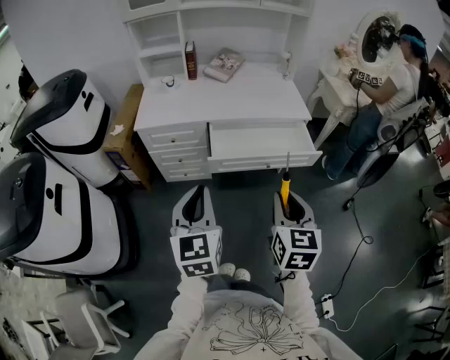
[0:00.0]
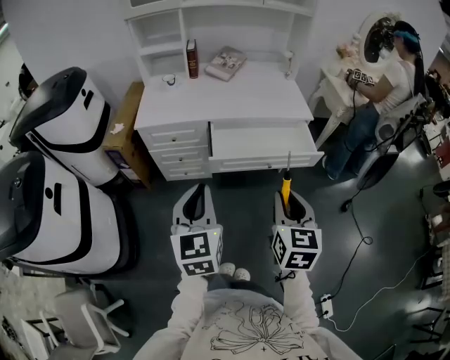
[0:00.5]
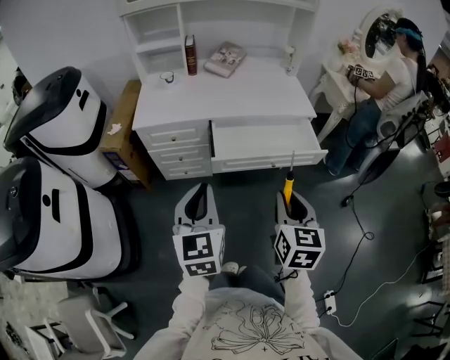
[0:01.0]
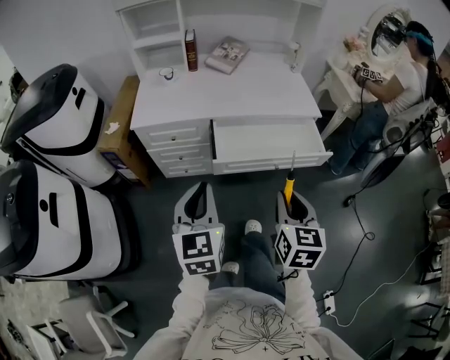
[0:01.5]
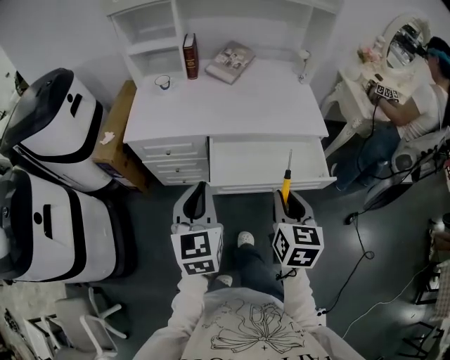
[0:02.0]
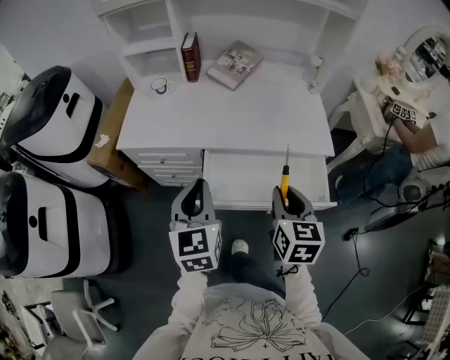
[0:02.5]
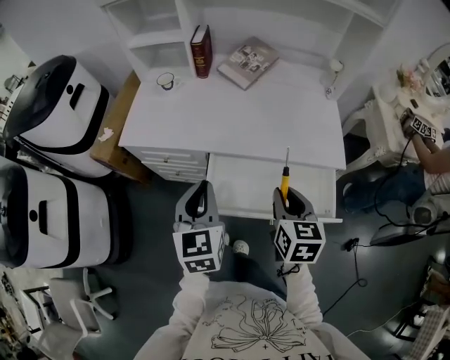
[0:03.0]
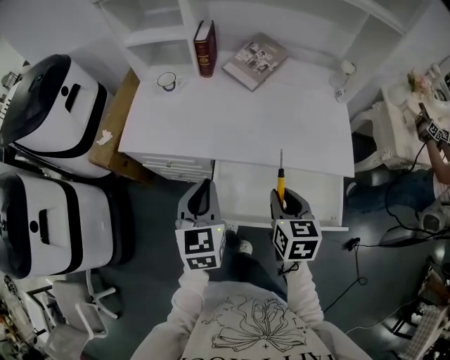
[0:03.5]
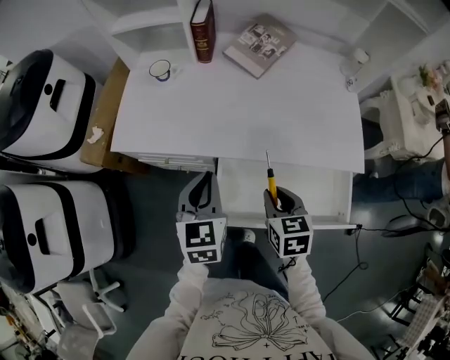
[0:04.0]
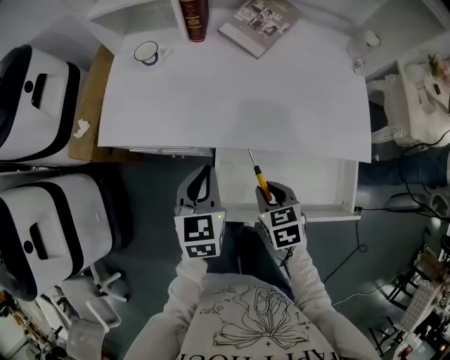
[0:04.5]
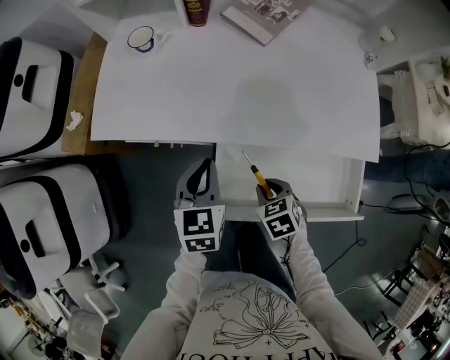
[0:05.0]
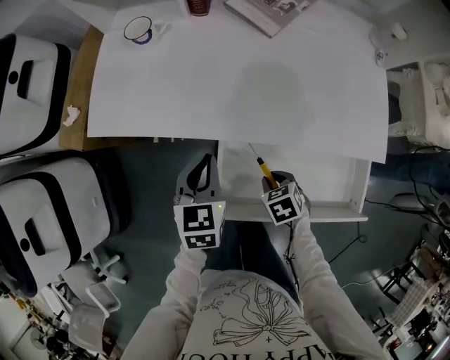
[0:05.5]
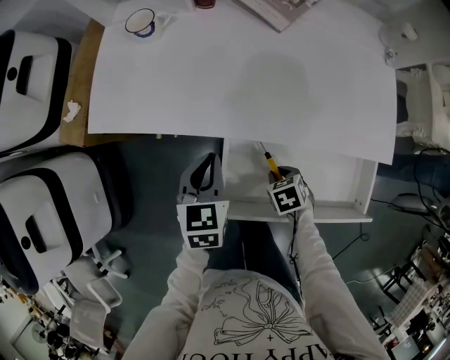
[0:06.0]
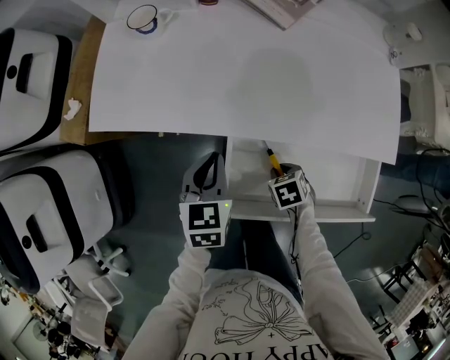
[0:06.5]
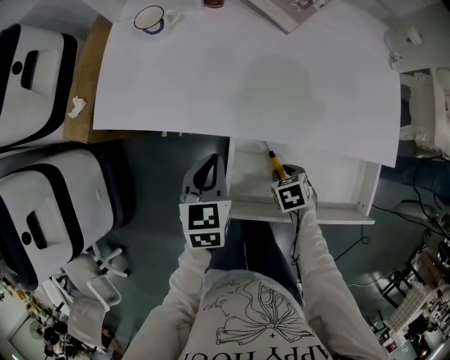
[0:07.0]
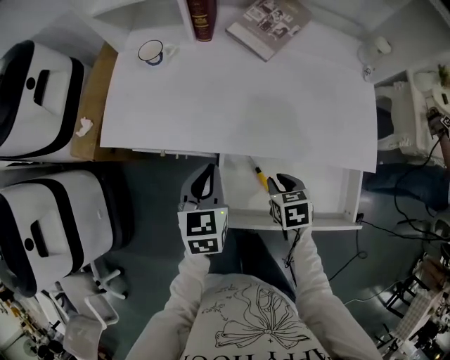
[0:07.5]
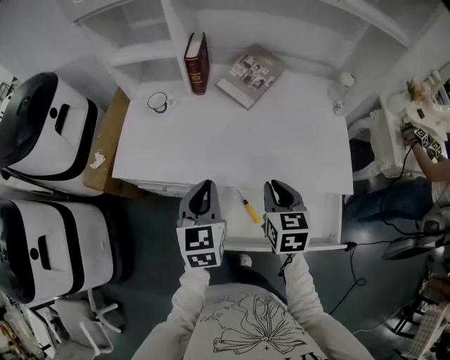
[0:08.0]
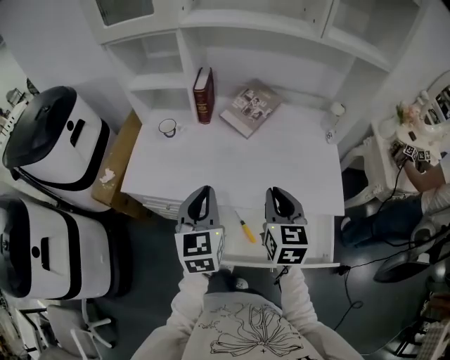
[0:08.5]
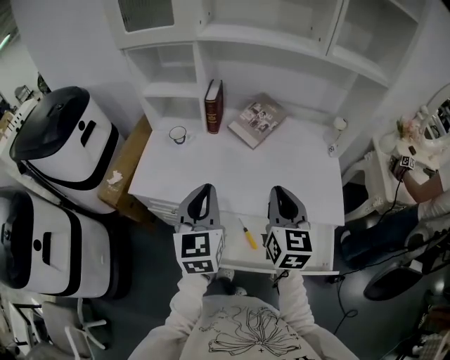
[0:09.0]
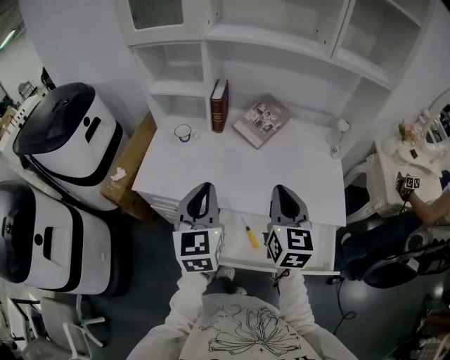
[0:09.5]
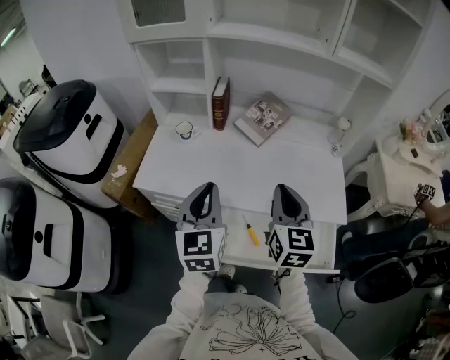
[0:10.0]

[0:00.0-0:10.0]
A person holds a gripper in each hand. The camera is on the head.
0:00.0 to 0:02.0: Both grippers travel together forward, about 20 cm.
0:02.0 to 0:04.0: Both grippers move forward and downward, some 30 cm. The right gripper turns by some 30 degrees.
0:04.0 to 0:06.0: The left gripper travels downward by some 15 cm. Meanwhile the right gripper is displaced downward by approximately 25 cm, and tilts its fingers roughly 30 degrees downward.
0:06.0 to 0:08.0: The left gripper goes approximately 15 cm upward. The right gripper heads upward, covering about 30 cm, and points its fingers some 40 degrees further upward.
0:08.0 to 0:10.0: The grippers both shift upward by some 15 cm. The right gripper swivels approximately 20 degrees.

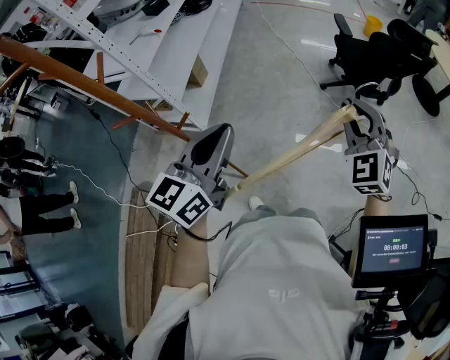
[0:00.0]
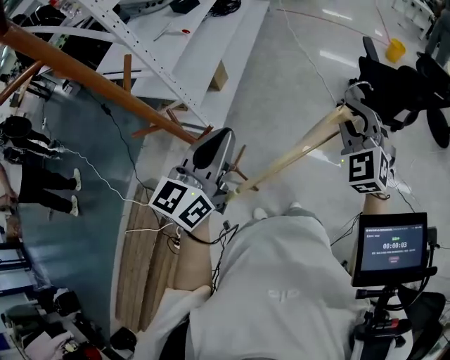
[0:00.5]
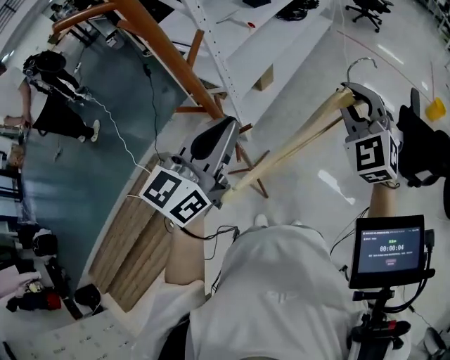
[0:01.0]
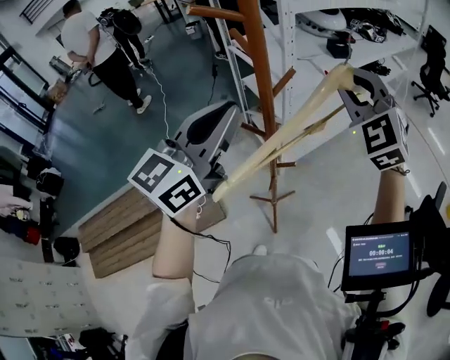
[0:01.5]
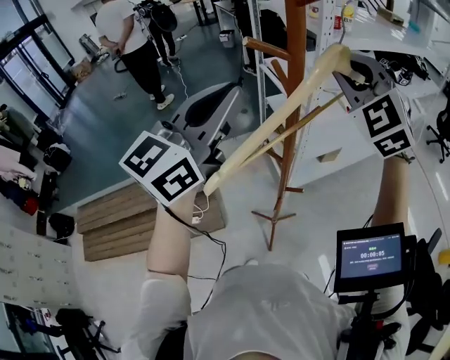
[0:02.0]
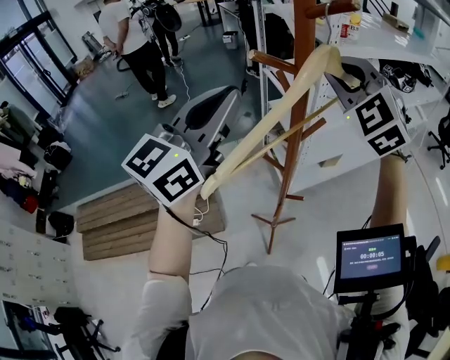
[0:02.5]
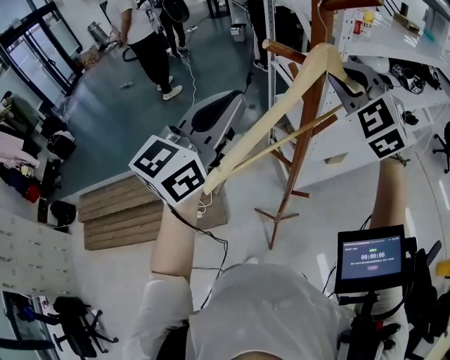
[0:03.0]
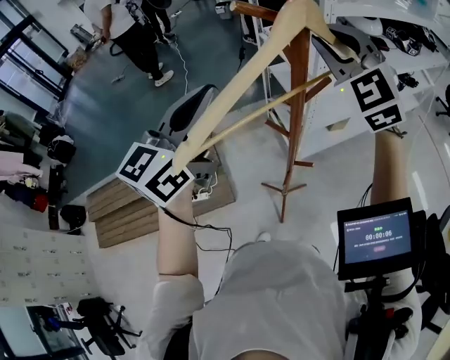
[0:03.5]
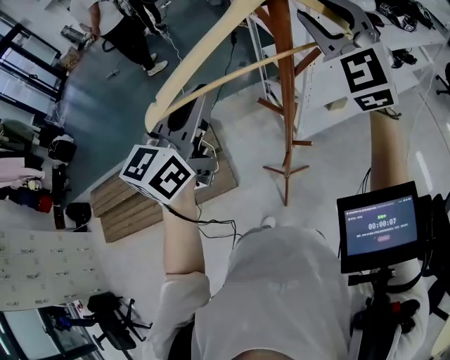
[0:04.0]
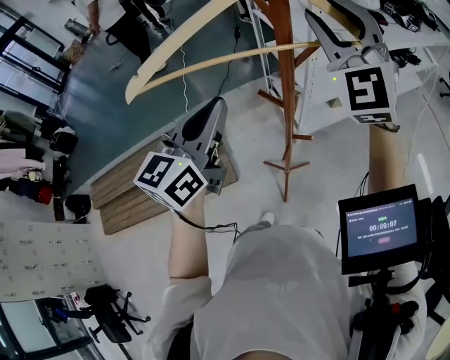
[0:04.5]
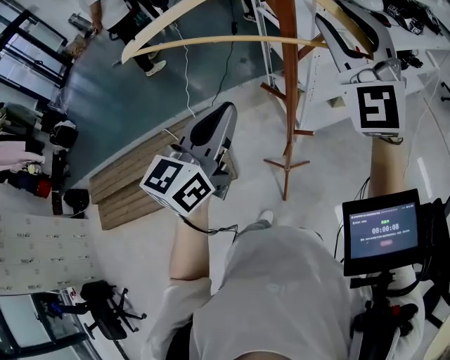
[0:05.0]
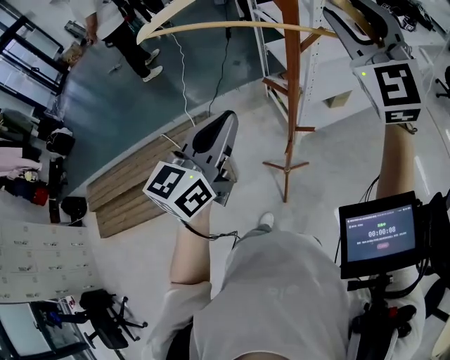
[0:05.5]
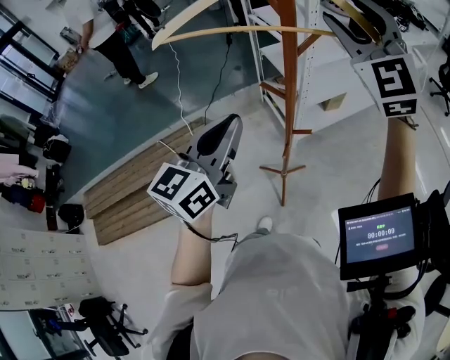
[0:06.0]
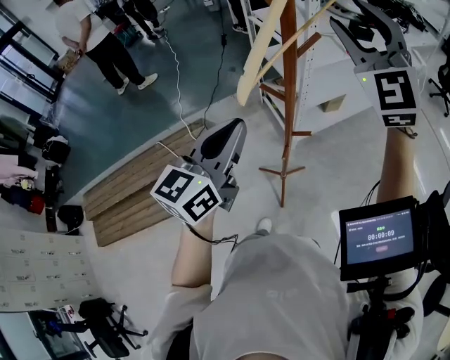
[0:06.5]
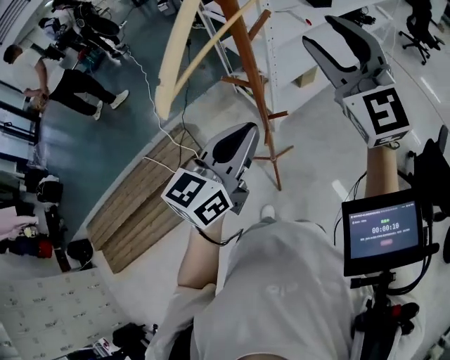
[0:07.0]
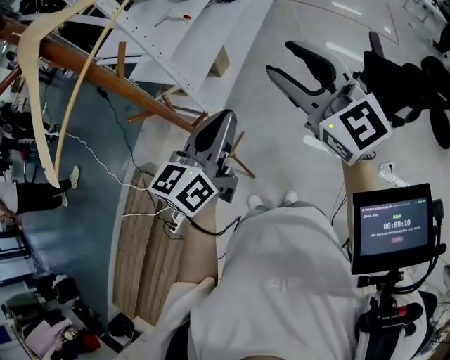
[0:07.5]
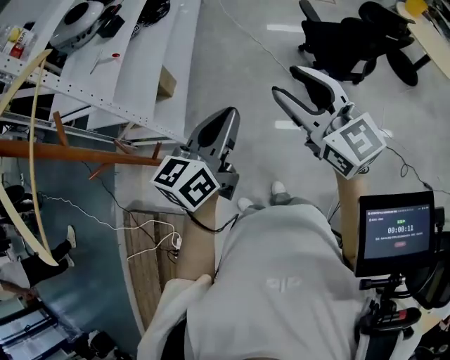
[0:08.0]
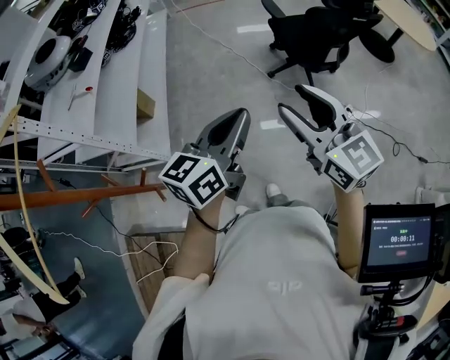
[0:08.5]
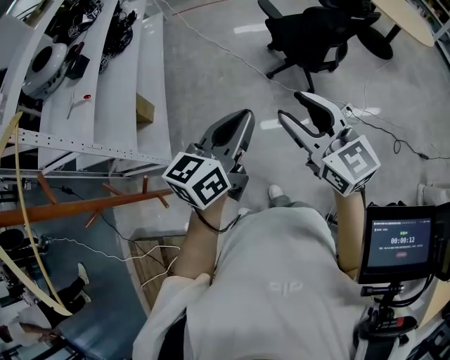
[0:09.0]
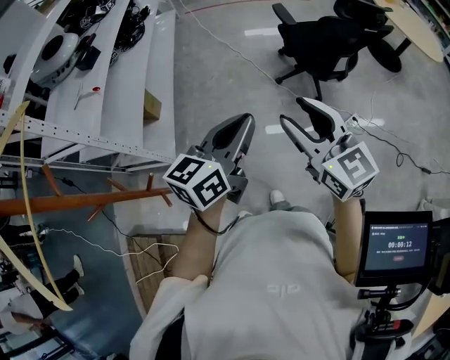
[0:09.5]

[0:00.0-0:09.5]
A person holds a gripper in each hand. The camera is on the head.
0:00.0 to 0:02.0: The left gripper shifts roughly 30 cm upward, and swivels some 50 degrees, while the right gripper shifts by about 60 cm, and turns by about 70 degrees.
0:02.0 to 0:04.0: The left gripper moves downward, approximately 10 cm.
0:04.0 to 0:05.5: The left gripper moves backward and downward, about 10 cm; the right gripper moves backward, approximately 10 cm.
0:05.5 to 0:07.5: The left gripper moves approximately 25 cm, and changes its angle by approximately 40 degrees. The right gripper shifts by some 30 cm, and swivels about 40 degrees.
0:07.5 to 0:09.5: The left gripper shifts by roughly 25 cm, and changes its angle by approximately 40 degrees. The right gripper changes place by about 25 cm, and changes its angle by approximately 40 degrees.

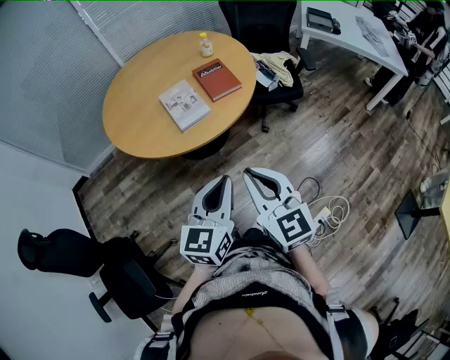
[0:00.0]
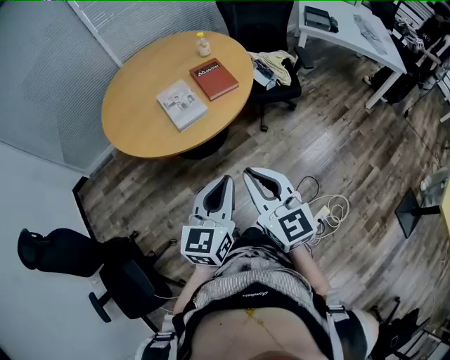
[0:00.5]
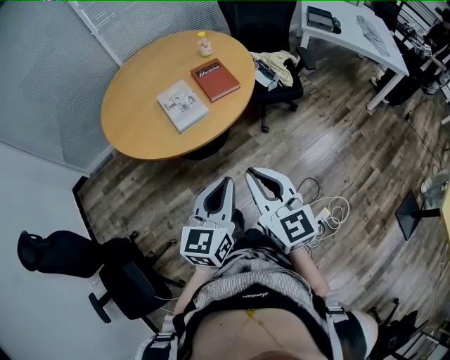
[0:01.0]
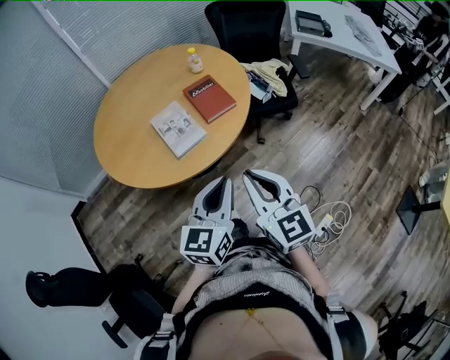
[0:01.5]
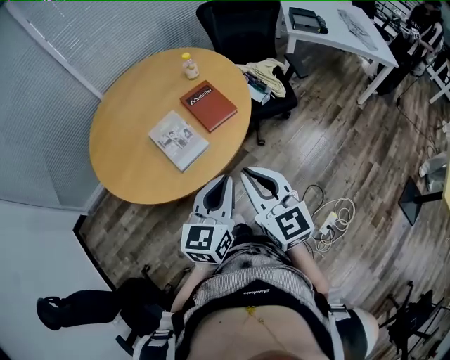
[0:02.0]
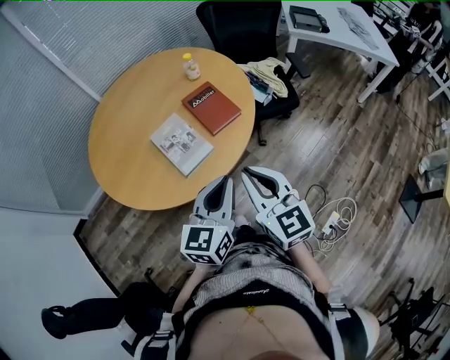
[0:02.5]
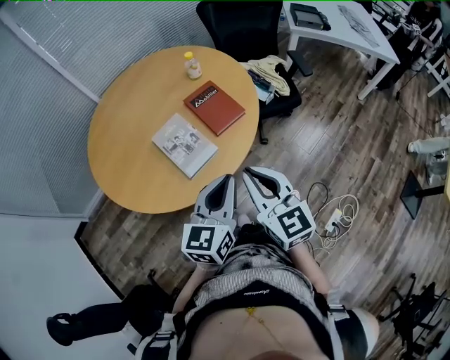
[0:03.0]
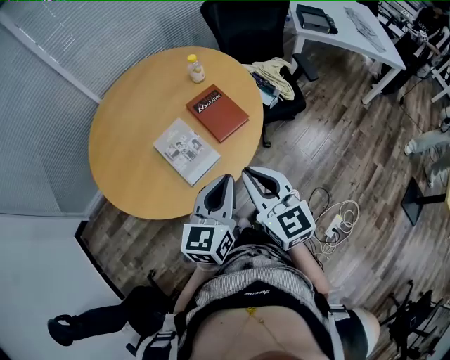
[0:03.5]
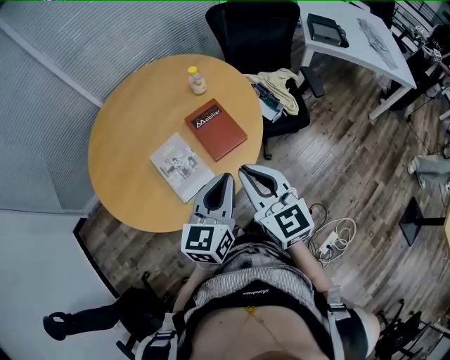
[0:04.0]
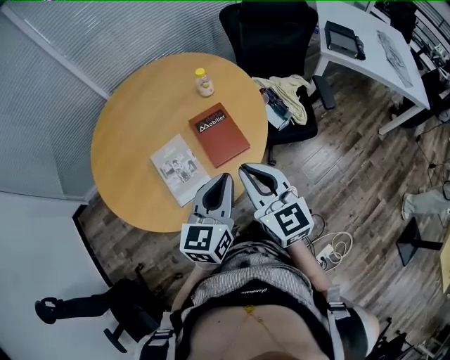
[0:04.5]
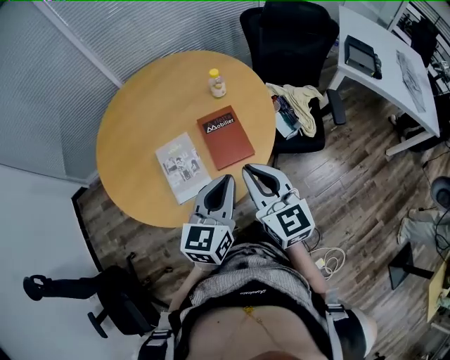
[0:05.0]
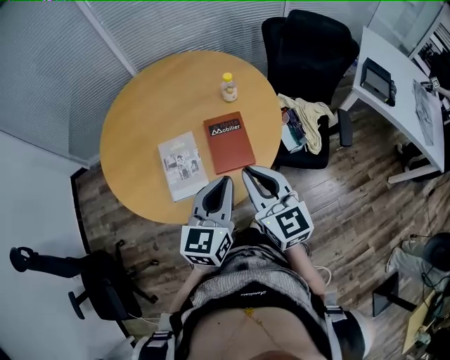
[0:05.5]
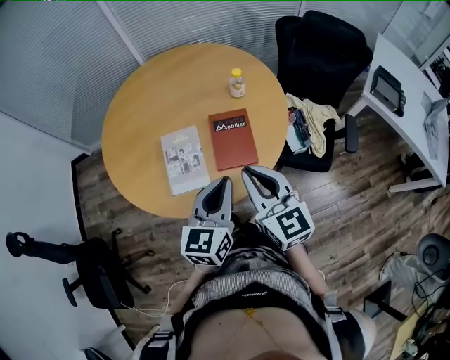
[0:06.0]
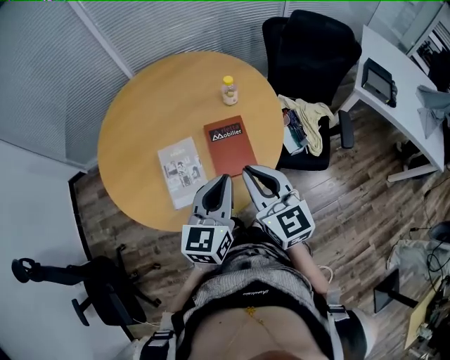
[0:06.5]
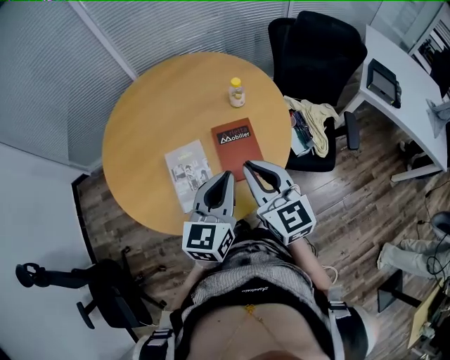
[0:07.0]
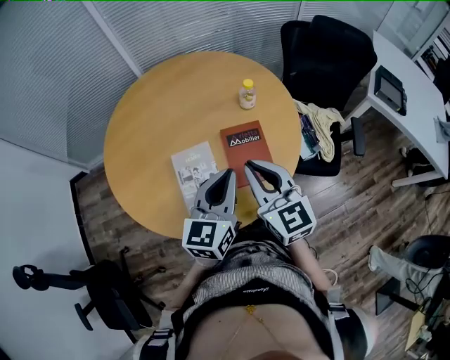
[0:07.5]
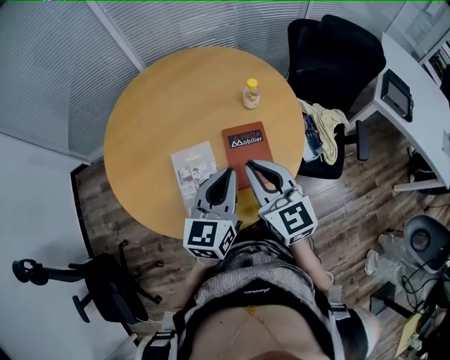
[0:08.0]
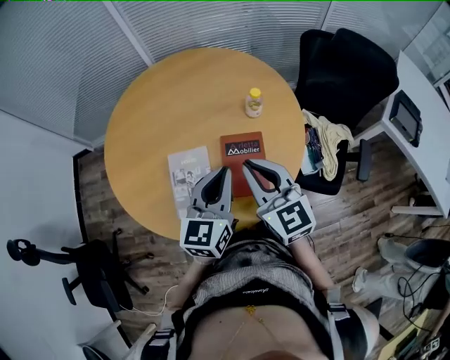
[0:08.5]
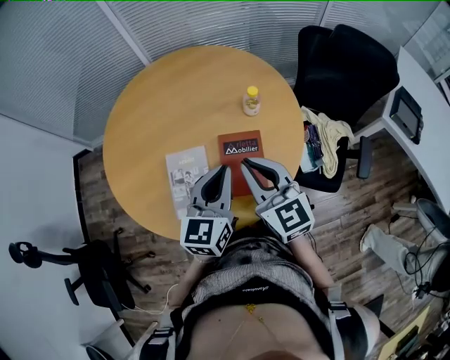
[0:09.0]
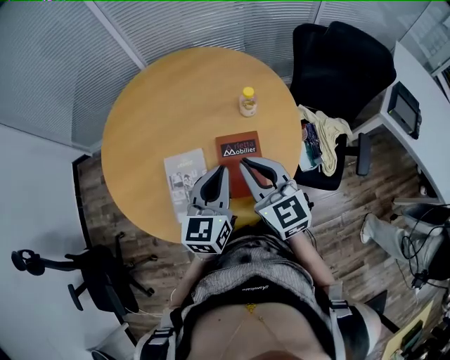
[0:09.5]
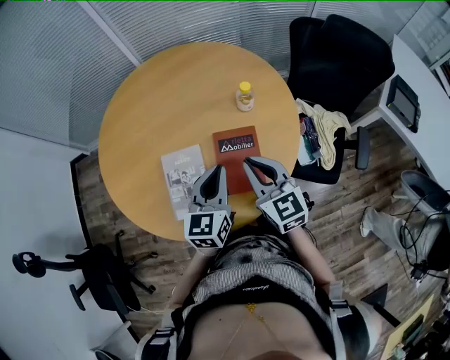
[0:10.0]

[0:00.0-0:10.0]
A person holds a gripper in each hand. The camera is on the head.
0:00.0 to 0:02.0: Both grippers move forward, some 15 cm.
0:02.0 to 0:04.0: Both grippers move forward, roughly 15 cm.
0:04.0 to 0:06.0: The two grippers go roughly 5 cm forward. The right gripper changes its angle by approximately 20 degrees; the left gripper turns by about 30 degrees.
0:06.0 to 0:08.0: The right gripper goes roughly 10 cm forward and to the left. The left gripper travels forward by about 10 cm.
0:08.0 to 0:10.0: The left gripper shifts about 5 cm downward and forward, while the right gripper goes roughly 10 cm downward and to the right.
